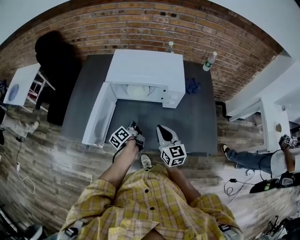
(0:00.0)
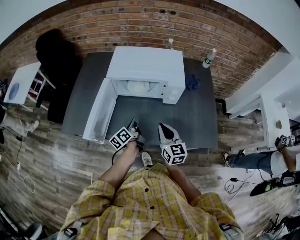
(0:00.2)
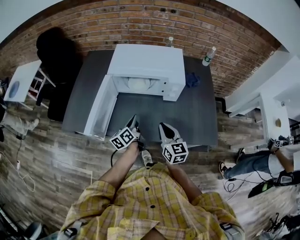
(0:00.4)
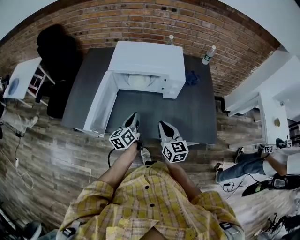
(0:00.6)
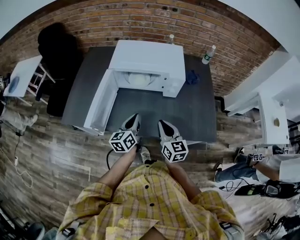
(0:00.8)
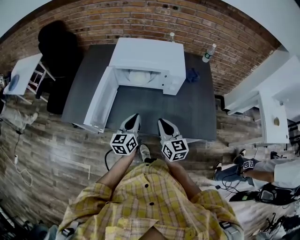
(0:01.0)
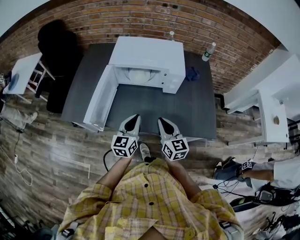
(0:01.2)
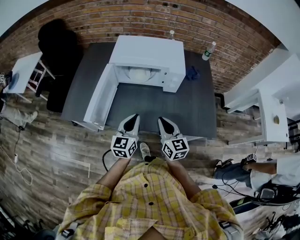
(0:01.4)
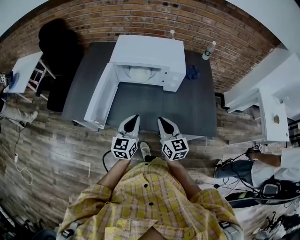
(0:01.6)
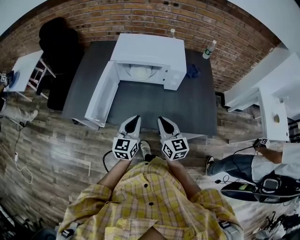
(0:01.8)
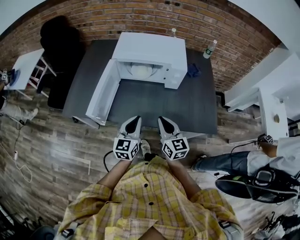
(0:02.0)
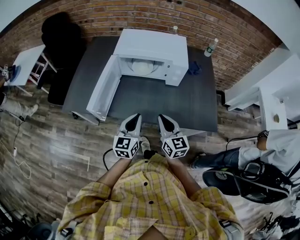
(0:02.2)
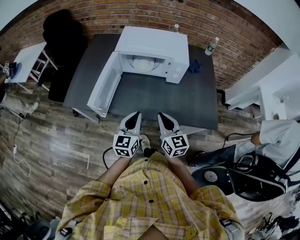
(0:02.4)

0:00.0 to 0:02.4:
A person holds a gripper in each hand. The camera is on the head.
0:00.0 to 0:01.2: The right gripper changes place by some 5 cm.
0:01.2 to 0:02.4: The right gripper ends up about 5 cm from where it was.

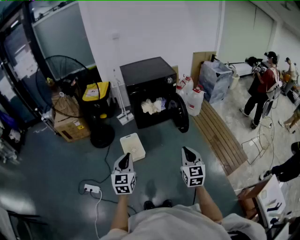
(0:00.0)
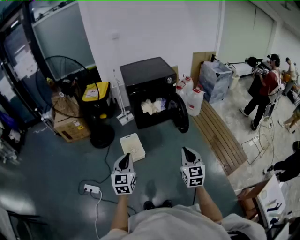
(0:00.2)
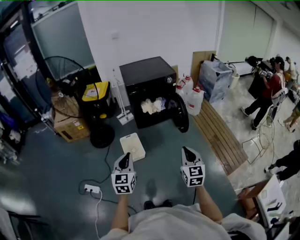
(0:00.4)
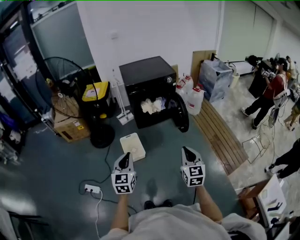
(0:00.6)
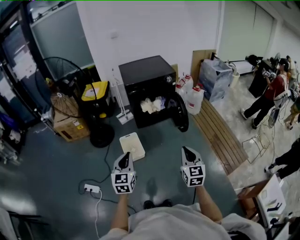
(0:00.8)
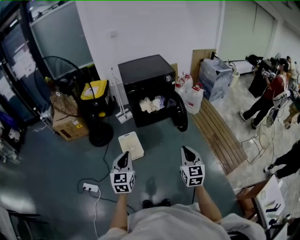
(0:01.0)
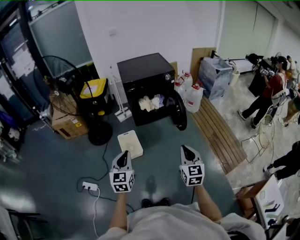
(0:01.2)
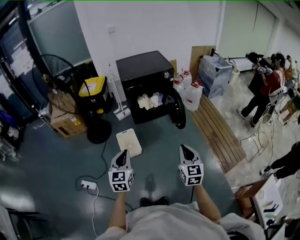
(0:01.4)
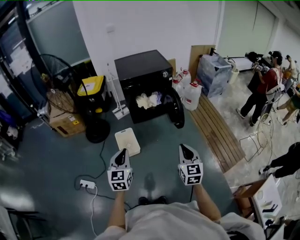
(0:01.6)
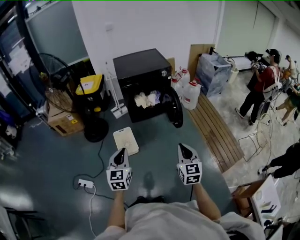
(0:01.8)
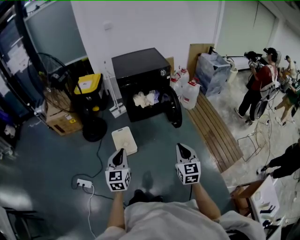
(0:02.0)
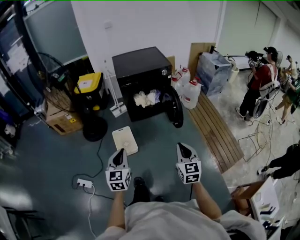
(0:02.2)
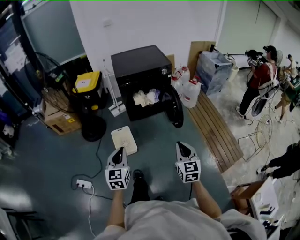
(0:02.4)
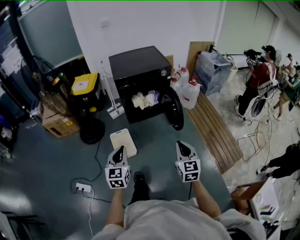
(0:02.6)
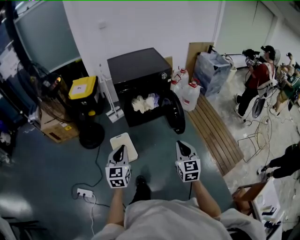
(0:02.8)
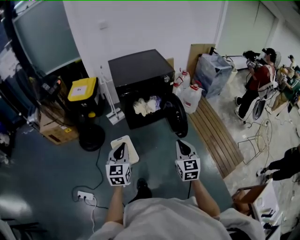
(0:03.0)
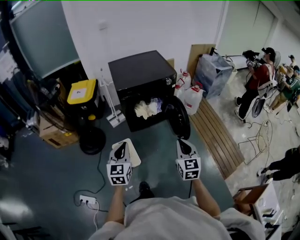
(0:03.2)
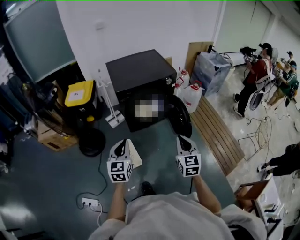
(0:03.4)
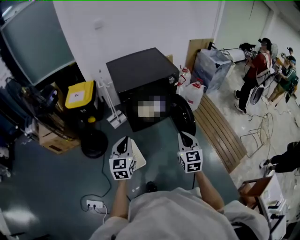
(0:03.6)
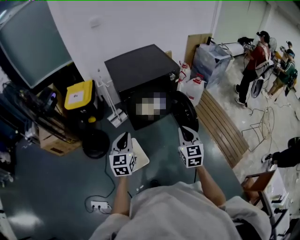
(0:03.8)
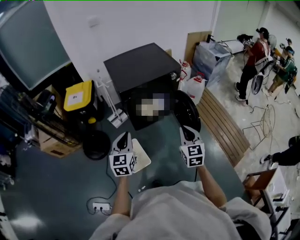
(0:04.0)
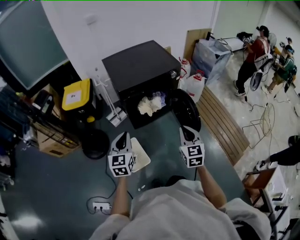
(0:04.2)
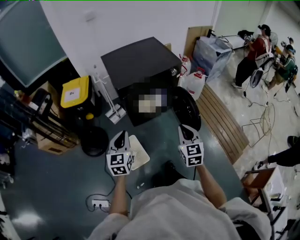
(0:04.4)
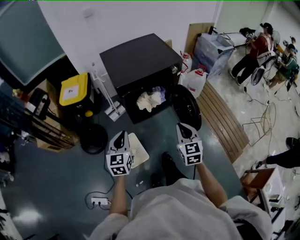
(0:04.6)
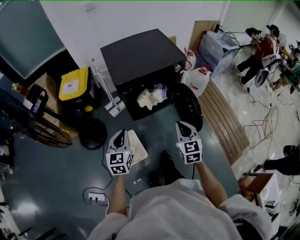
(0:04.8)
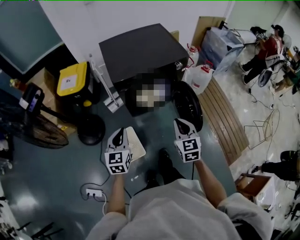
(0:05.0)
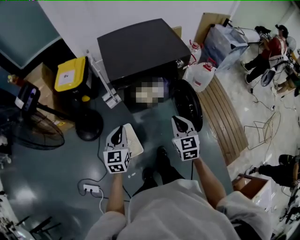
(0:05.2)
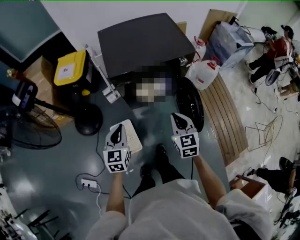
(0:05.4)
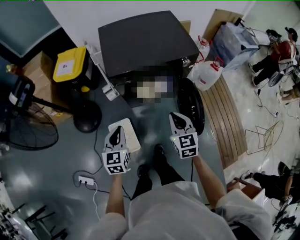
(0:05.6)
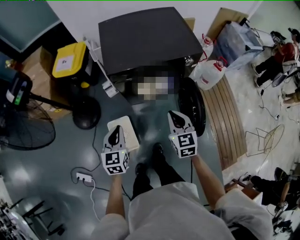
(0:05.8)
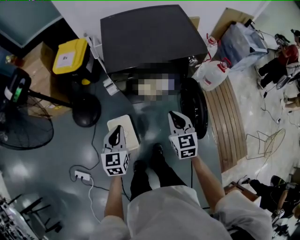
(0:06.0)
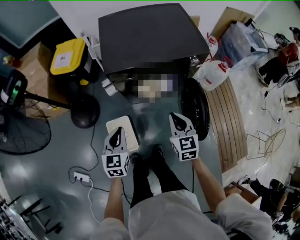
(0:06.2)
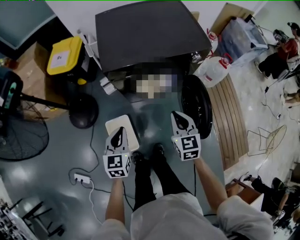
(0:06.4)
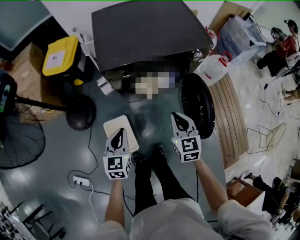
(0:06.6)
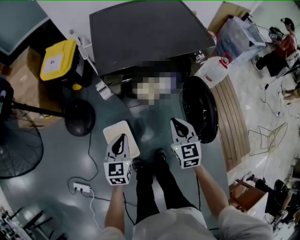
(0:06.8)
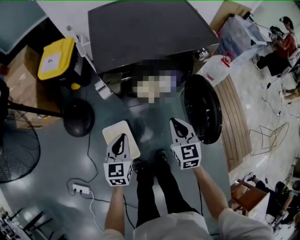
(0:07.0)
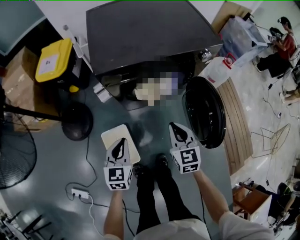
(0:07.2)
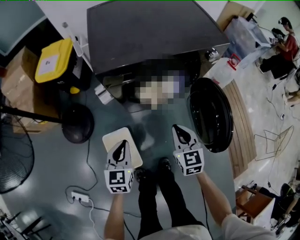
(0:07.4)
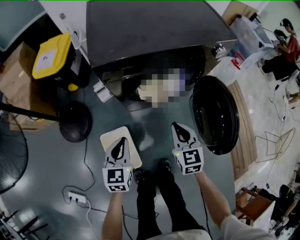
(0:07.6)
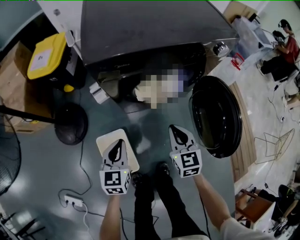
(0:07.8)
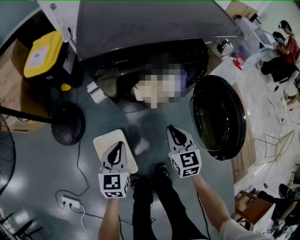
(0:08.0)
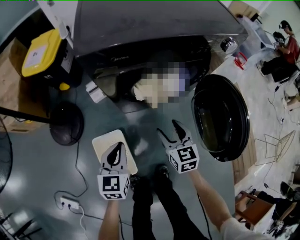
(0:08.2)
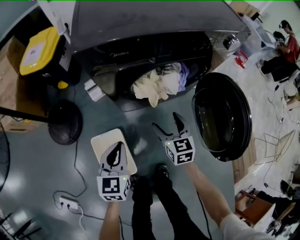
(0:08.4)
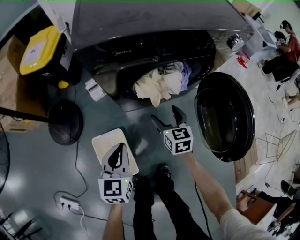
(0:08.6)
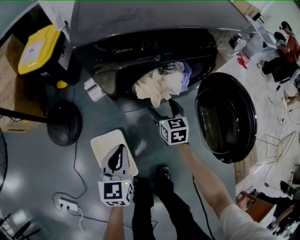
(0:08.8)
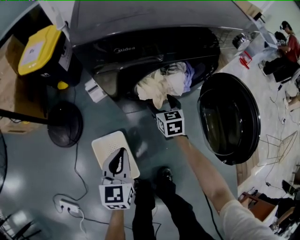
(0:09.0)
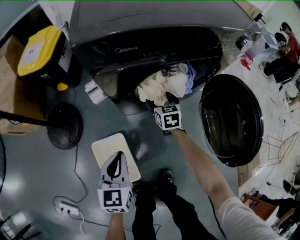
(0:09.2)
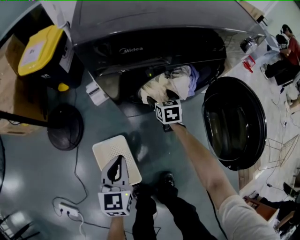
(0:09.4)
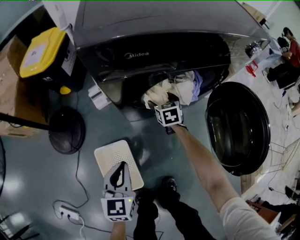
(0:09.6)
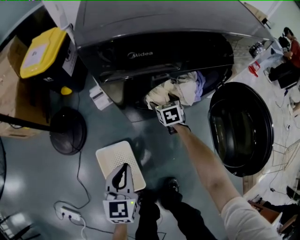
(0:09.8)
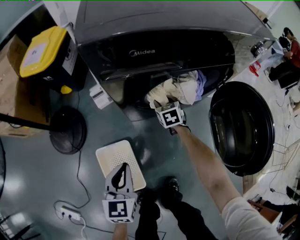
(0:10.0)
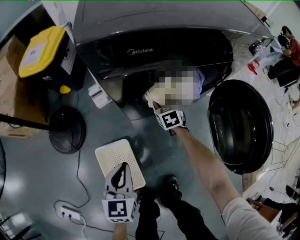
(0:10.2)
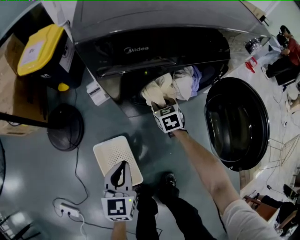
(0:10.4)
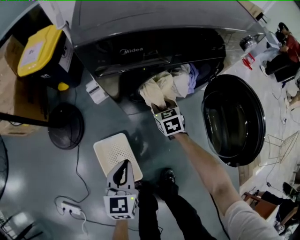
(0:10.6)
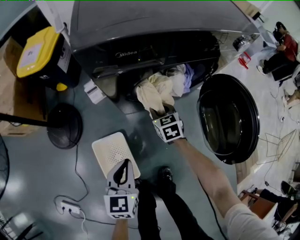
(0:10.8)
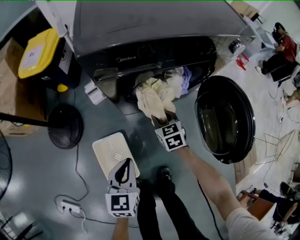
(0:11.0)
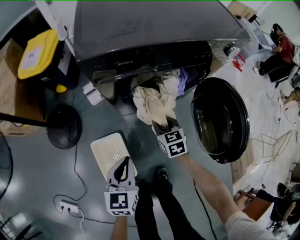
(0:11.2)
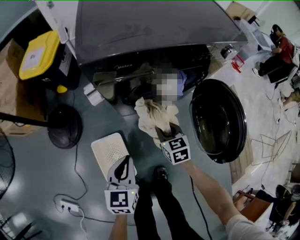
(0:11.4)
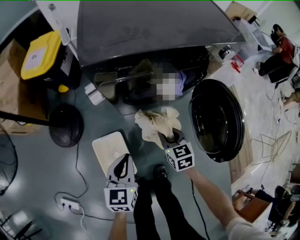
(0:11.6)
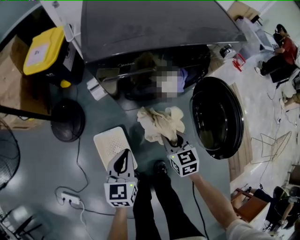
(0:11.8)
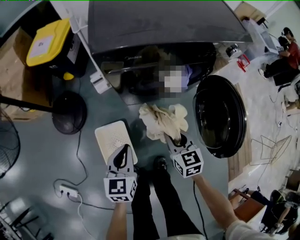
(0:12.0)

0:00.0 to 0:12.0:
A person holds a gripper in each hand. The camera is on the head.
0:00.0 to 0:01.6: The right gripper shifts by roughly 5 cm. The left gripper shifts by approximately 5 cm.
0:01.6 to 0:03.0: The two grippers go roughly 20 cm forward.
0:03.0 to 0:04.4: The grippers both shift forward and to the left by approximately 25 cm.
0:04.4 to 0:06.0: The right gripper goes about 25 cm forward and downward, and rotates approximately 20 degrees. Meanwhile the left gripper travels downward, forward and to the right by roughly 20 cm.
0:06.0 to 0:07.6: The two grippers go about 25 cm downward.
0:07.6 to 0:09.0: The left gripper shifts roughly 10 cm downward, while the right gripper heads downward and forward, covering approximately 25 cm, and opens its fingers.
0:09.0 to 0:10.4: The right gripper closes up.
0:10.4 to 0:12.0: The left gripper heads upward, covering about 10 cm; the right gripper heads backward and upward, covering some 30 cm.

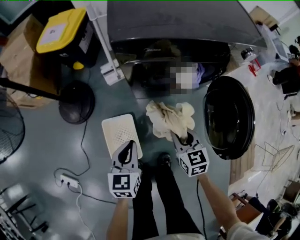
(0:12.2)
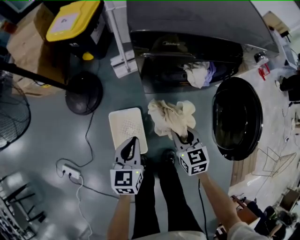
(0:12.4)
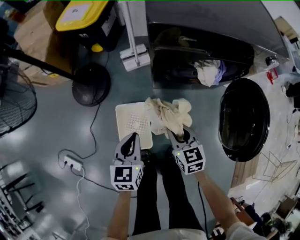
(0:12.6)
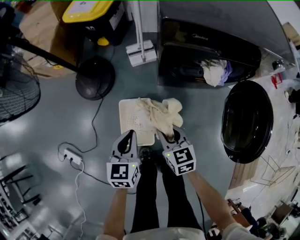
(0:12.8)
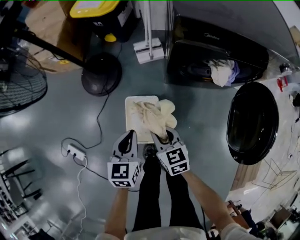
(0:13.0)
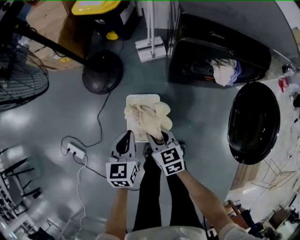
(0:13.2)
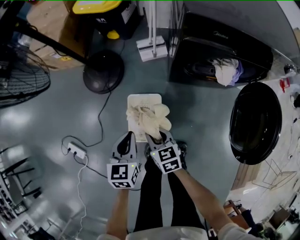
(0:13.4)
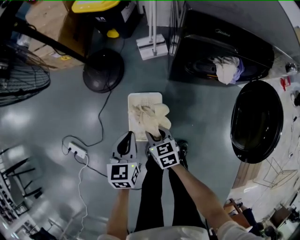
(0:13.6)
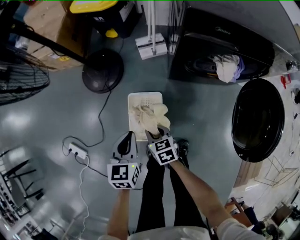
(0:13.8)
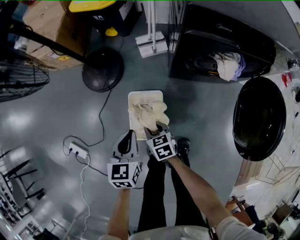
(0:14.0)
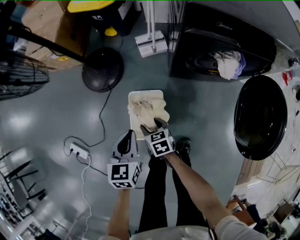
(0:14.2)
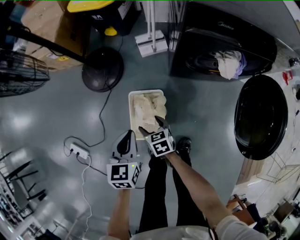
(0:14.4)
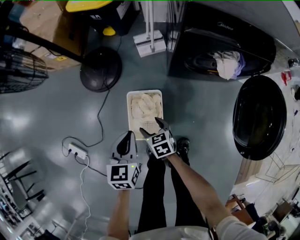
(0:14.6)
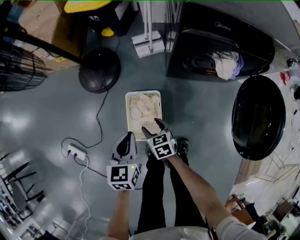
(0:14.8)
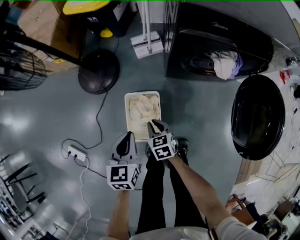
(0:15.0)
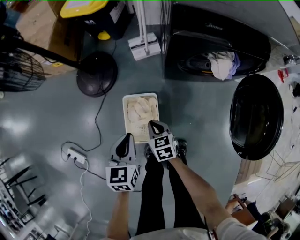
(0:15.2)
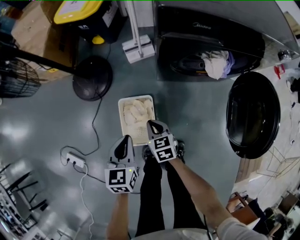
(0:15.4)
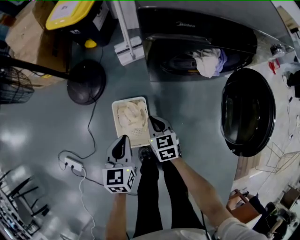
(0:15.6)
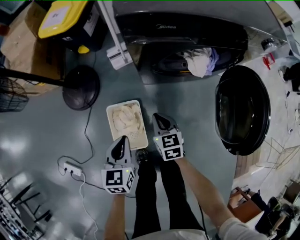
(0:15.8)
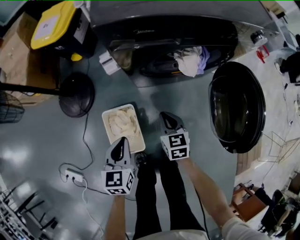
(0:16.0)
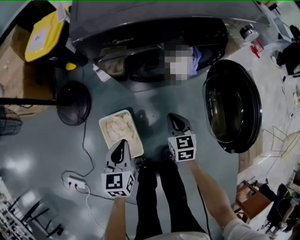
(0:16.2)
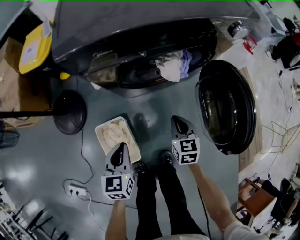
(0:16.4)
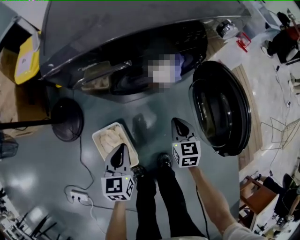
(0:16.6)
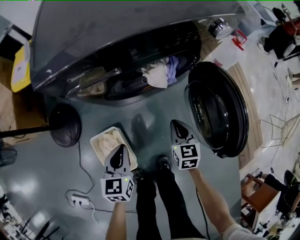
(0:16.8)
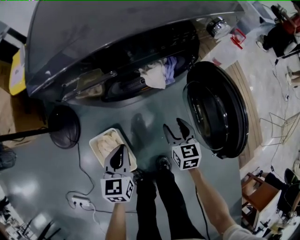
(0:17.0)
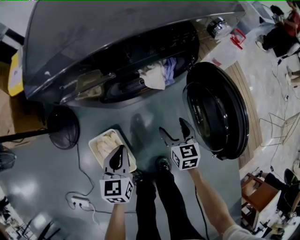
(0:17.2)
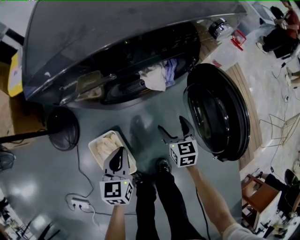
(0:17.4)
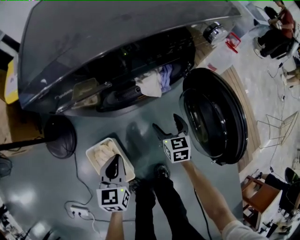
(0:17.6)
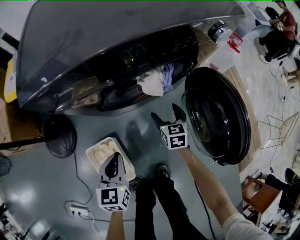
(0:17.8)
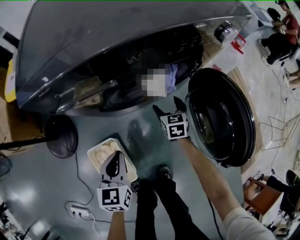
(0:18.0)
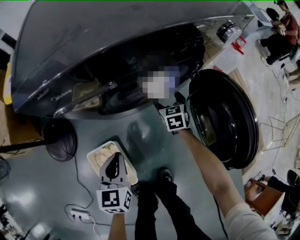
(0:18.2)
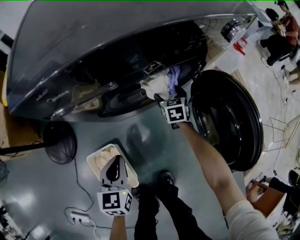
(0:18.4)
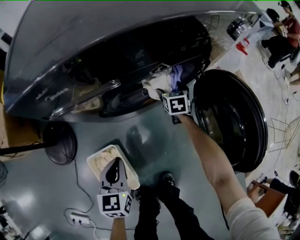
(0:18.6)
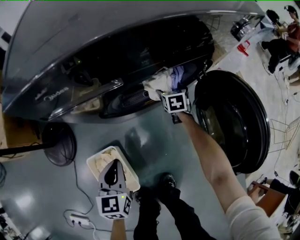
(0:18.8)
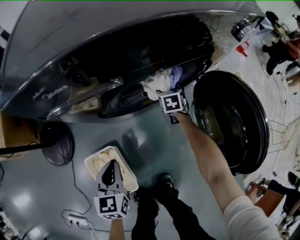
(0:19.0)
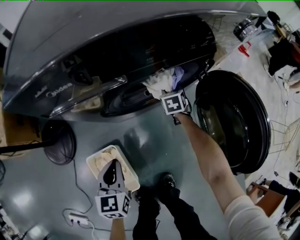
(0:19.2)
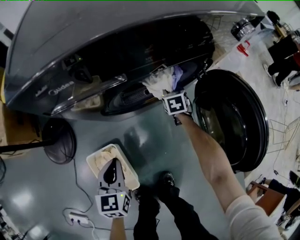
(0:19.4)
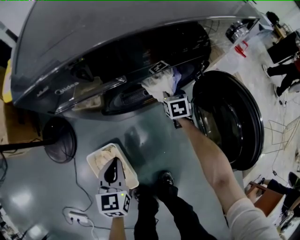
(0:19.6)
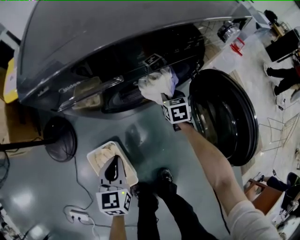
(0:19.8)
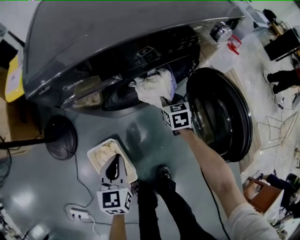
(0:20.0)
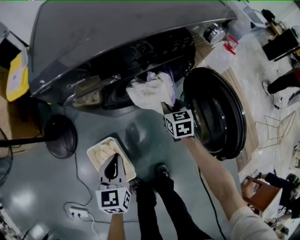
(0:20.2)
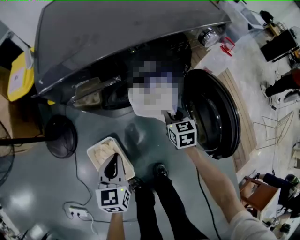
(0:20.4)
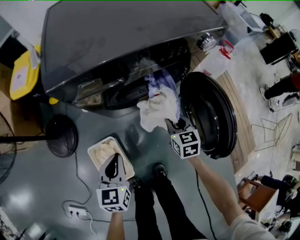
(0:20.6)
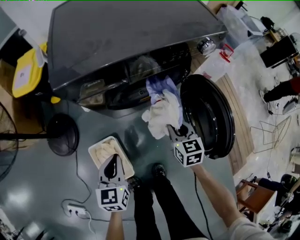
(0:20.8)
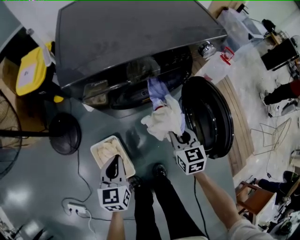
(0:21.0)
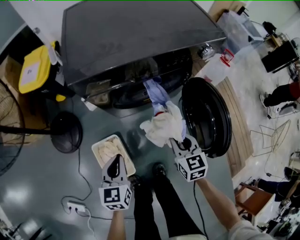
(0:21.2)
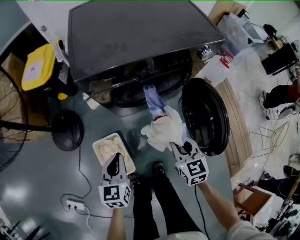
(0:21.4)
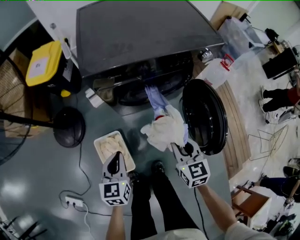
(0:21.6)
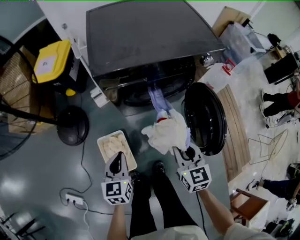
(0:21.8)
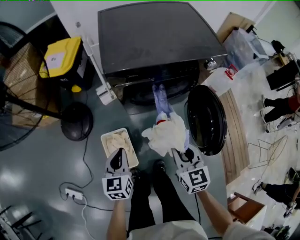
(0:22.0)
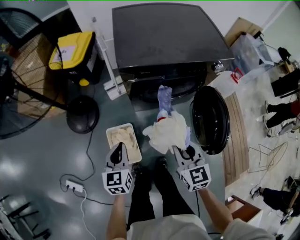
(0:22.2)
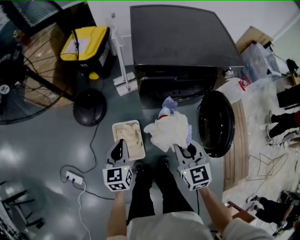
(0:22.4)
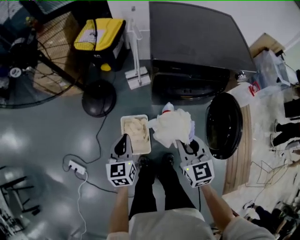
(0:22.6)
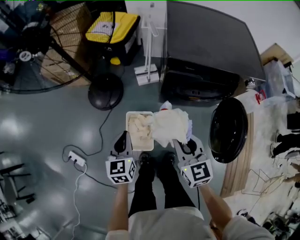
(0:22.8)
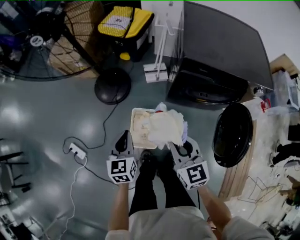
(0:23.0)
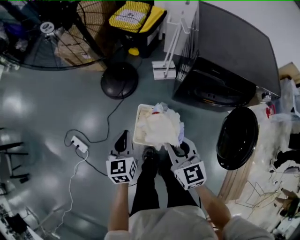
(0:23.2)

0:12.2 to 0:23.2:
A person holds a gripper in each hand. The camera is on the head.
0:12.2 to 0:13.8: The right gripper changes place by roughly 30 cm, and swivels some 30 degrees; the left gripper ends up about 15 cm from where it was.
0:13.8 to 0:15.4: The right gripper heads to the right, covering some 5 cm, and opens and closes again.
0:15.4 to 0:17.0: The left gripper ends up approximately 25 cm from where it was, and changes its angle by about 20 degrees. The right gripper shifts by about 35 cm, turns by roughly 30 degrees, and opens its fingers.
0:17.0 to 0:18.4: The left gripper changes place by roughly 5 cm. Meanwhile the right gripper is displaced forward and downward by roughly 25 cm, and opens up.
0:18.4 to 0:20.0: The right gripper travels upward and backward by about 10 cm, and closes up, while the left gripper moves about 5 cm.
0:20.0 to 0:21.6: The right gripper is displaced upward and backward by roughly 35 cm; the left gripper heads upward and backward, covering roughly 15 cm.
0:21.6 to 0:23.2: The left gripper shifts by approximately 30 cm, and rotates some 30 degrees. Meanwhile the right gripper changes place by roughly 35 cm, and changes its angle by about 40 degrees.
